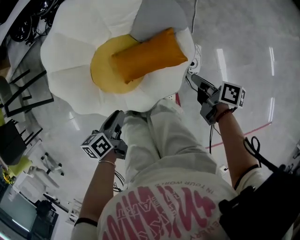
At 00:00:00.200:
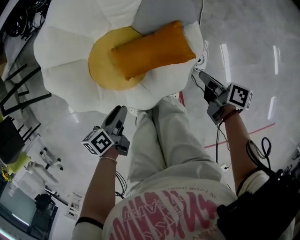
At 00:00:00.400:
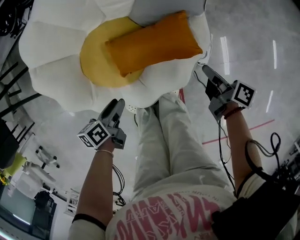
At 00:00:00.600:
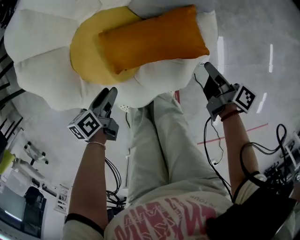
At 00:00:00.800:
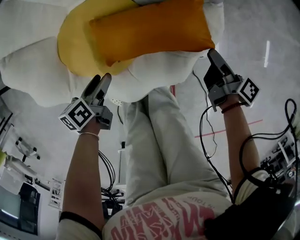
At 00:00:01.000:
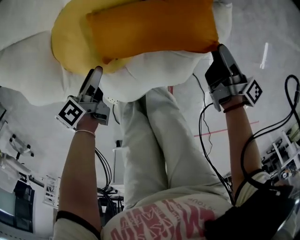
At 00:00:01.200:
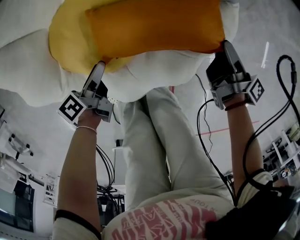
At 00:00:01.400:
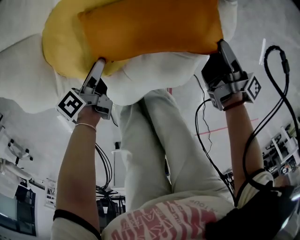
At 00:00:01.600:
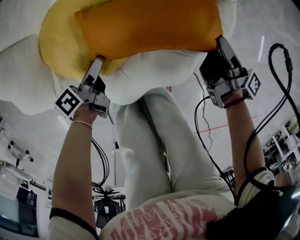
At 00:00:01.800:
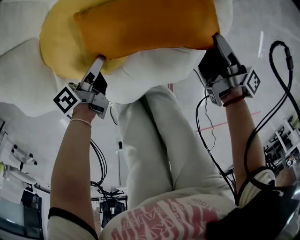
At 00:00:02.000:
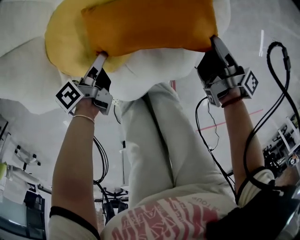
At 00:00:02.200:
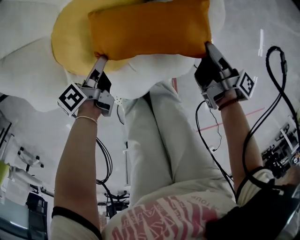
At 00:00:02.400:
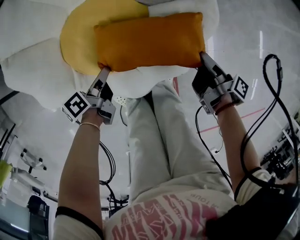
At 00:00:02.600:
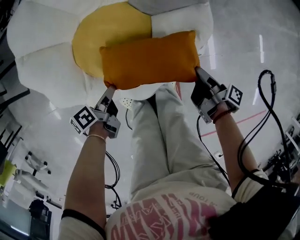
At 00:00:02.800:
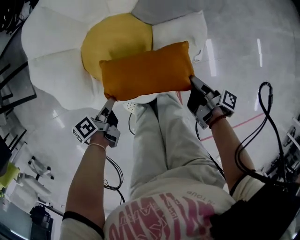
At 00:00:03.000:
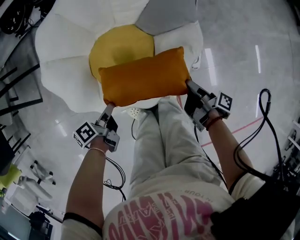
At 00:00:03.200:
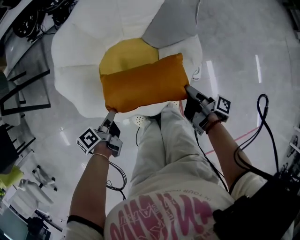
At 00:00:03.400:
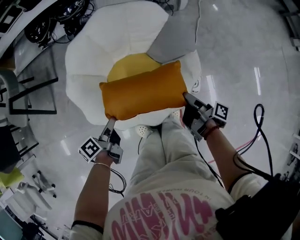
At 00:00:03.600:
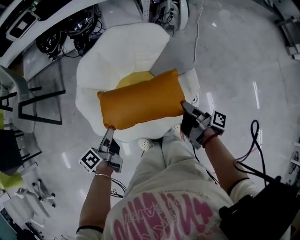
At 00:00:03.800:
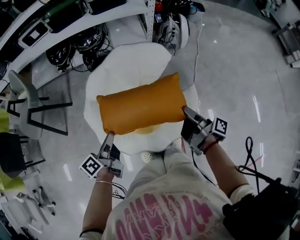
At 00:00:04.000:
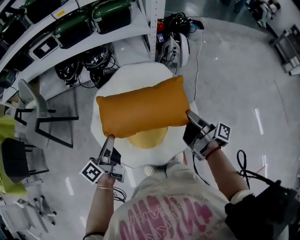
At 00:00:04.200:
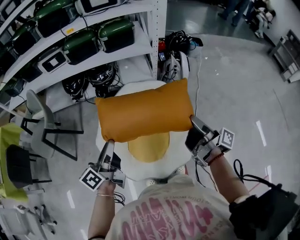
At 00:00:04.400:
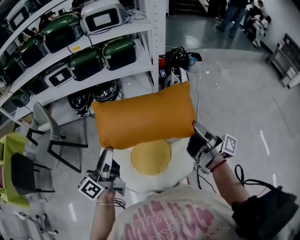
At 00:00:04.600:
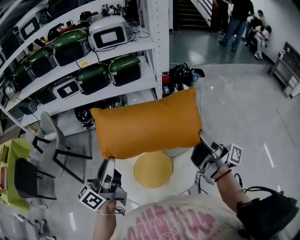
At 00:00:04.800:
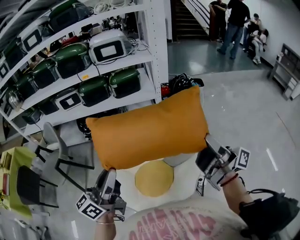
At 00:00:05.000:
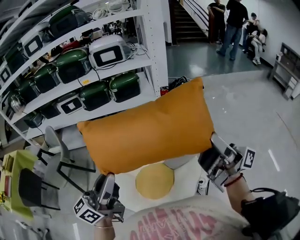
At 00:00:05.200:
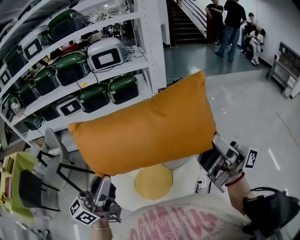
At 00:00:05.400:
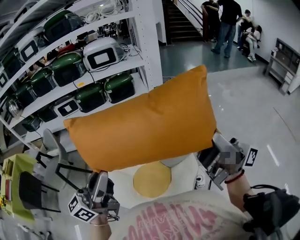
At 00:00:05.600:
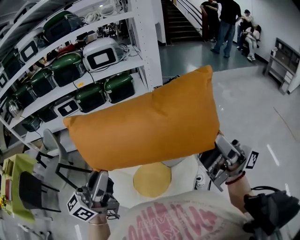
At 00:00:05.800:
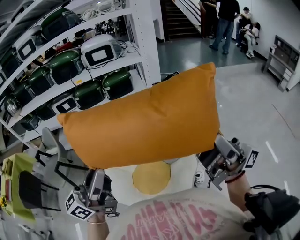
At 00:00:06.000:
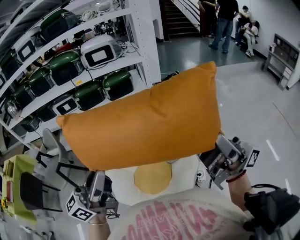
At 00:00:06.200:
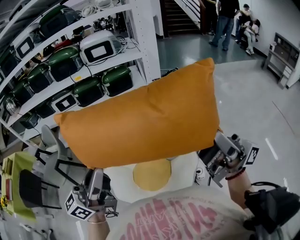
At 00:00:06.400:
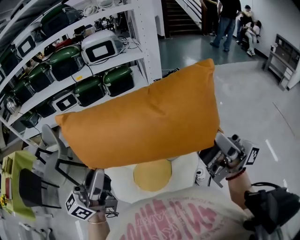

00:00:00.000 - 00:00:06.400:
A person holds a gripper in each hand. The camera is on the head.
00:00:00.000 - 00:00:01.600: The right gripper goes some 10 cm to the left and downward, turns by roughly 30 degrees, and opens its fingers. The left gripper is displaced downward and to the left by some 20 cm, rotates approximately 30 degrees, and opens its fingers.
00:00:01.600 - 00:00:03.200: The right gripper closes up. Meanwhile the left gripper goes approximately 5 cm upward, and closes its fingers.
00:00:03.200 - 00:00:04.800: Both grippers travel together upward, about 60 cm. The left gripper tilts its fingers some 50 degrees upward. The right gripper points its fingers about 60 degrees further upward.
00:00:04.800 - 00:00:06.400: The left gripper goes some 5 cm upward; the right gripper moves upward and backward, approximately 10 cm, and changes its angle by about 20 degrees.

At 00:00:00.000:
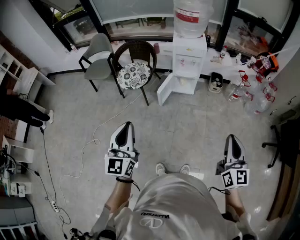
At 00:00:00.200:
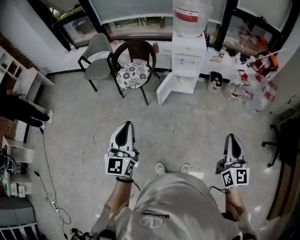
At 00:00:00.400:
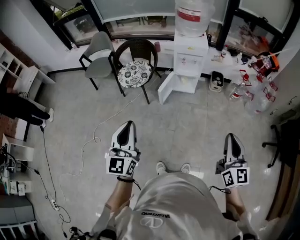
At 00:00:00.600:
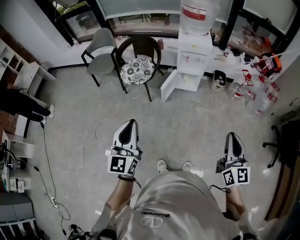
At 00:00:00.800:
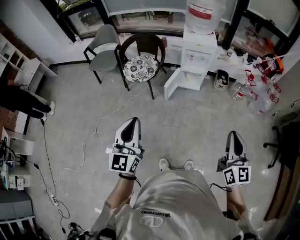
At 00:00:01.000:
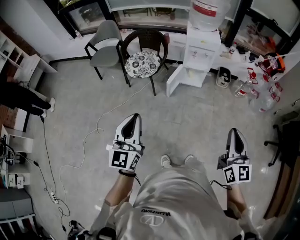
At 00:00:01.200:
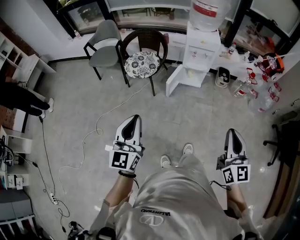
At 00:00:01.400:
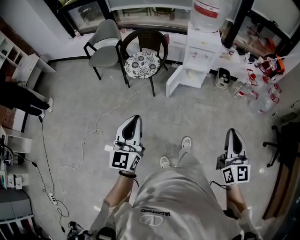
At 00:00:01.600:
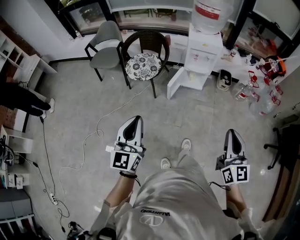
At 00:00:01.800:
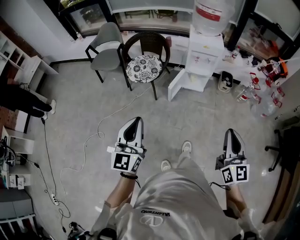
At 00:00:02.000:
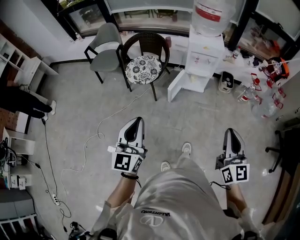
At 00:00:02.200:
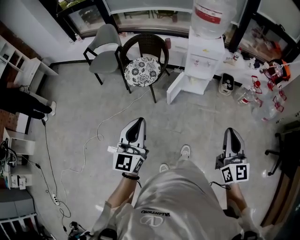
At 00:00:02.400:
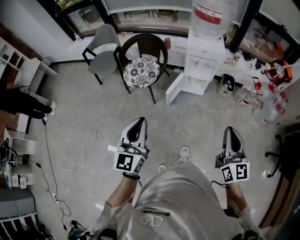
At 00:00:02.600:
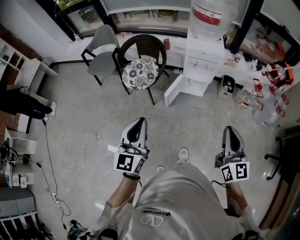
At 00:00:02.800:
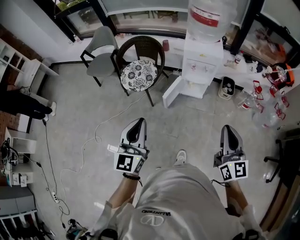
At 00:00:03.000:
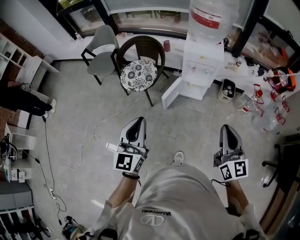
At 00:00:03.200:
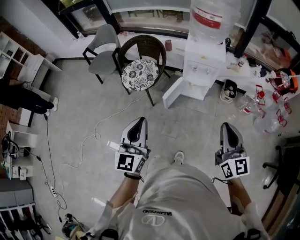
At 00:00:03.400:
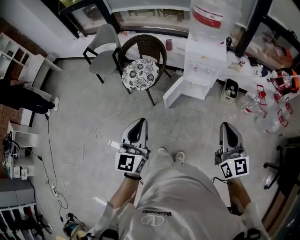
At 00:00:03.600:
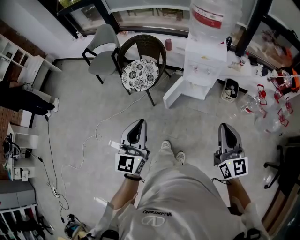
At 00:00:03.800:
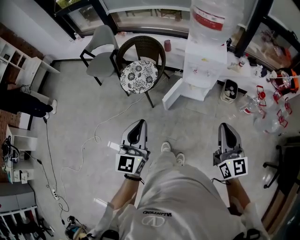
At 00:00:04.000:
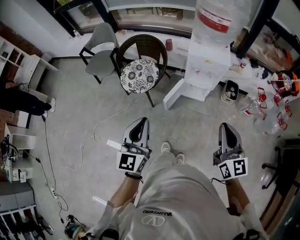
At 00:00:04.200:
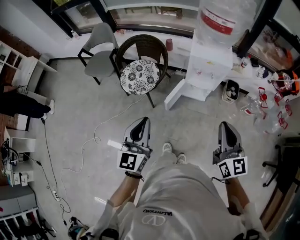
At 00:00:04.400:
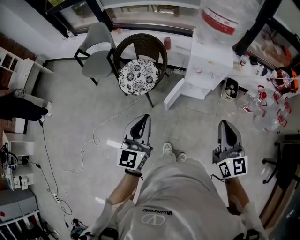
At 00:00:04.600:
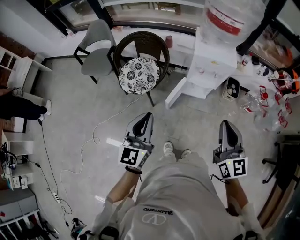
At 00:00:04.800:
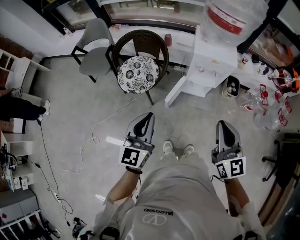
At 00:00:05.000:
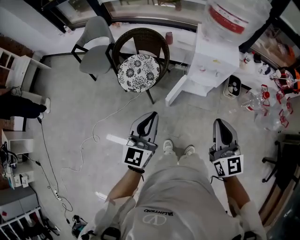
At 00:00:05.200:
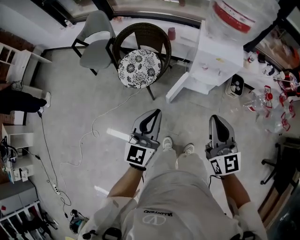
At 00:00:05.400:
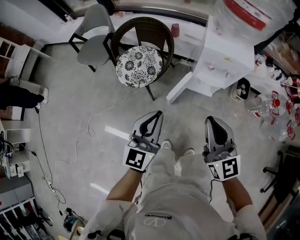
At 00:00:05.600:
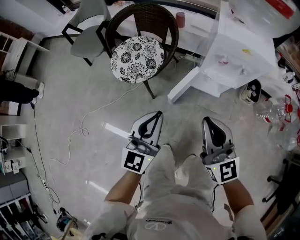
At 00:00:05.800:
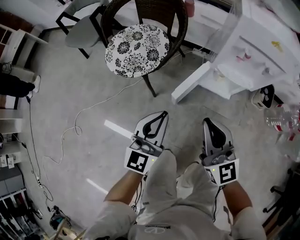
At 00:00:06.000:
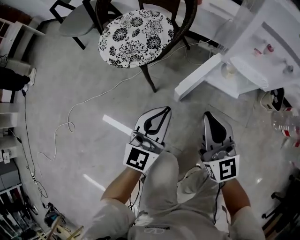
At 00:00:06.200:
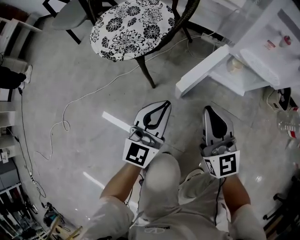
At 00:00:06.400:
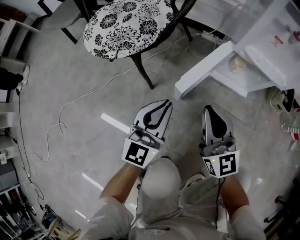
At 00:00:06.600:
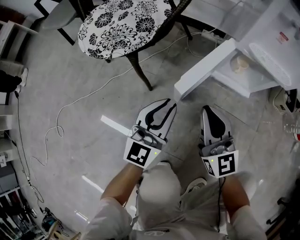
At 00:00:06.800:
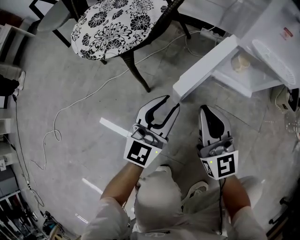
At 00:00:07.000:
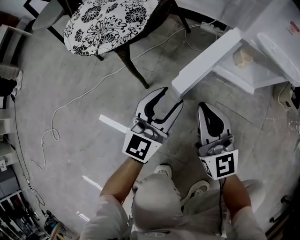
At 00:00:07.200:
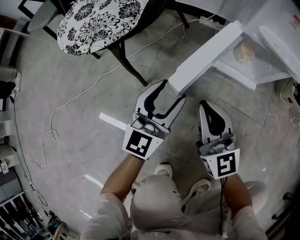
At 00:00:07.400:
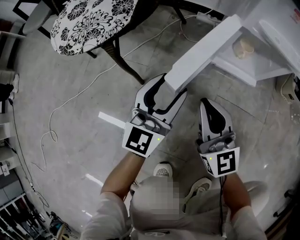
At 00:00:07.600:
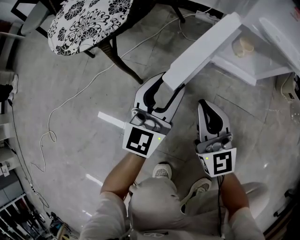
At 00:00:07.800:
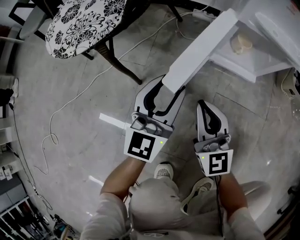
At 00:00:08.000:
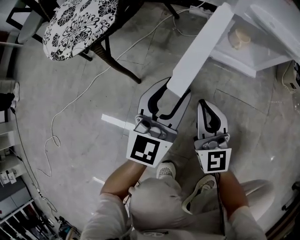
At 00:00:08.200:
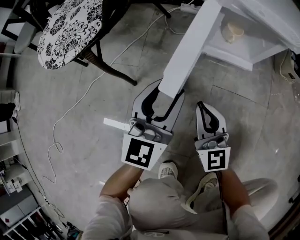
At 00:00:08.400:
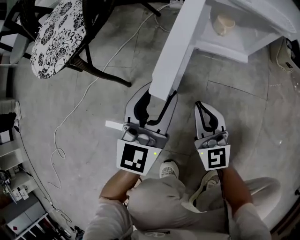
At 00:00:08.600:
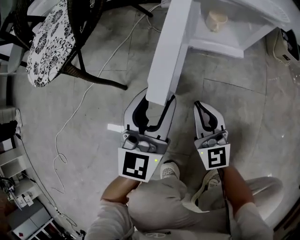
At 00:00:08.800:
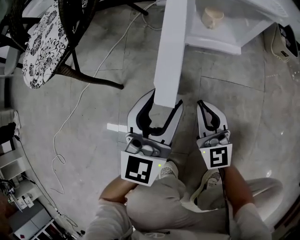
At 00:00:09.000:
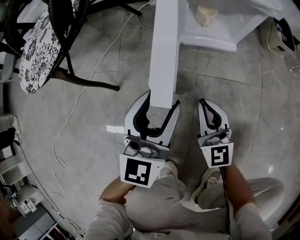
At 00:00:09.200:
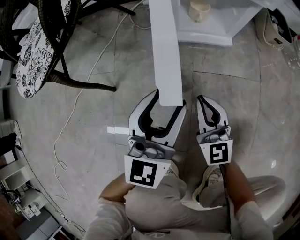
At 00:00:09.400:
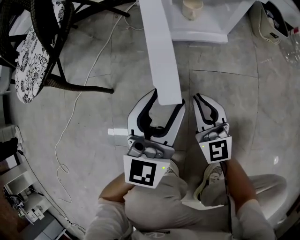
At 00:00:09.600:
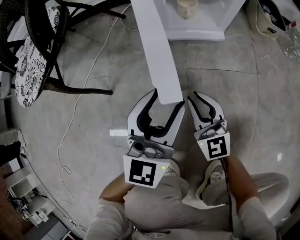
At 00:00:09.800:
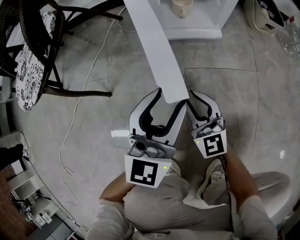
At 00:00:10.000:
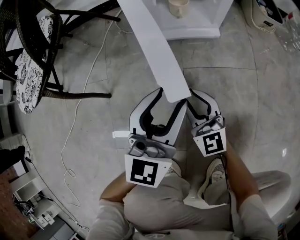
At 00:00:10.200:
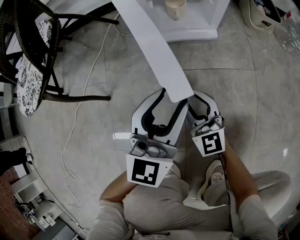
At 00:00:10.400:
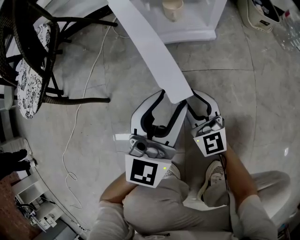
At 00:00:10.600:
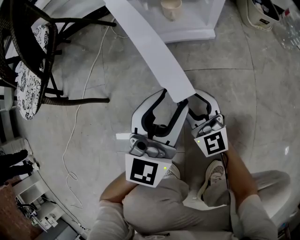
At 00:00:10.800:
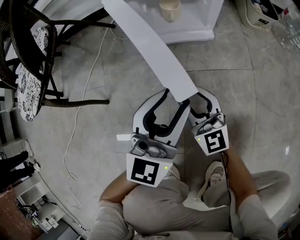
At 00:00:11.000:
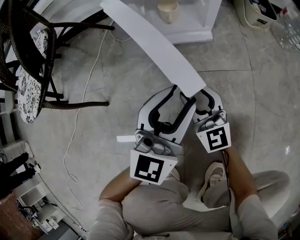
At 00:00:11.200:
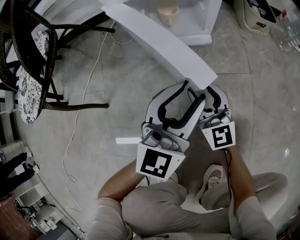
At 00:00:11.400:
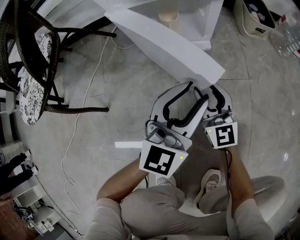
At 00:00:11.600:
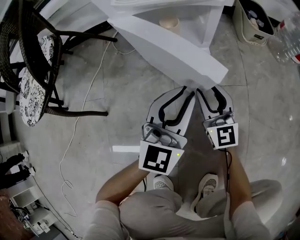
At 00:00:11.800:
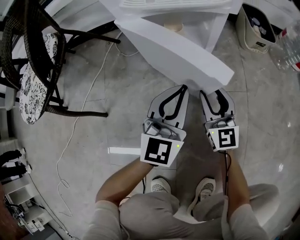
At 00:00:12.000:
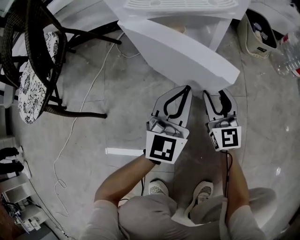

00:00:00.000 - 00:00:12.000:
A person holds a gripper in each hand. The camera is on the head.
00:00:00.000 - 00:00:01.600: The right gripper travels to the left by roughly 10 cm. Meanwhile the left gripper is displaced to the left by approximately 5 cm.
00:00:01.600 - 00:00:03.000: Both grippers travel together forward and to the right, roughly 20 cm.
00:00:03.000 - 00:00:04.400: The right gripper heads forward and to the left, covering approximately 15 cm, while the left gripper heads forward, covering about 15 cm.
00:00:04.400 - 00:00:06.000: Both grippers move downward, roughly 50 cm. The right gripper rotates about 20 degrees.
00:00:06.000 - 00:00:07.600: The left gripper shifts about 25 cm downward and forward, and opens up. Meanwhile the right gripper is displaced downward by roughly 25 cm.
00:00:07.600 - 00:00:09.000: The left gripper goes roughly 10 cm to the right and backward. The right gripper heads to the right and downward, covering approximately 15 cm.
00:00:09.000 - 00:00:10.400: The left gripper is displaced to the right by about 10 cm. Meanwhile the right gripper changes place by some 5 cm, and opens its fingers.
00:00:10.400 - 00:00:12.000: The right gripper is displaced forward and to the right by approximately 15 cm; the left gripper is displaced forward by roughly 10 cm, and closes up.

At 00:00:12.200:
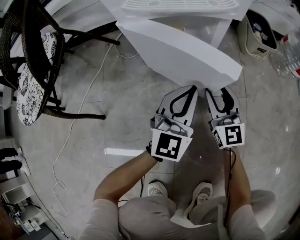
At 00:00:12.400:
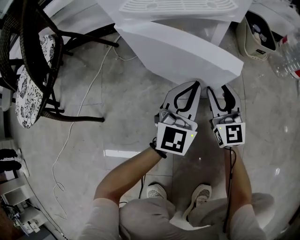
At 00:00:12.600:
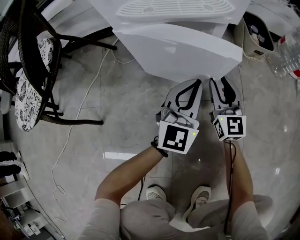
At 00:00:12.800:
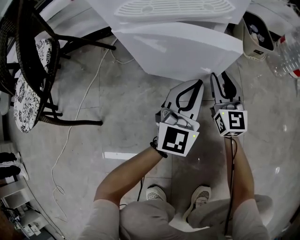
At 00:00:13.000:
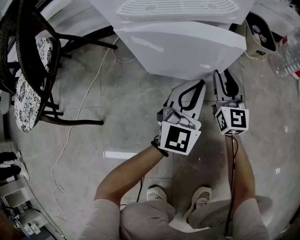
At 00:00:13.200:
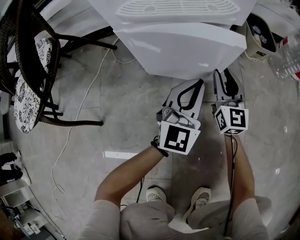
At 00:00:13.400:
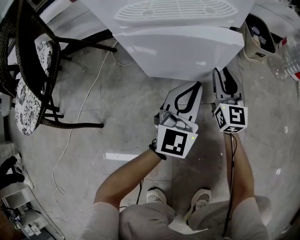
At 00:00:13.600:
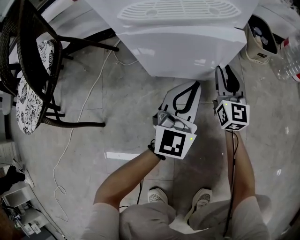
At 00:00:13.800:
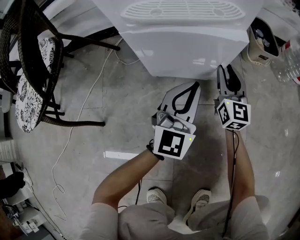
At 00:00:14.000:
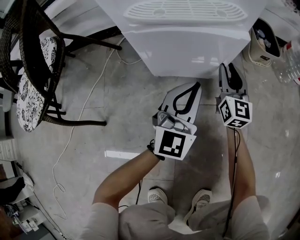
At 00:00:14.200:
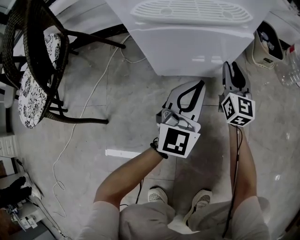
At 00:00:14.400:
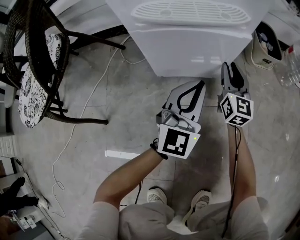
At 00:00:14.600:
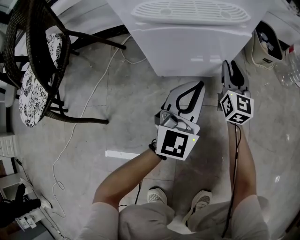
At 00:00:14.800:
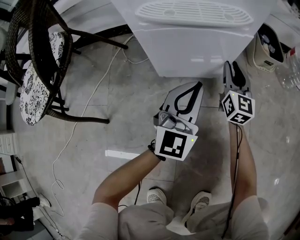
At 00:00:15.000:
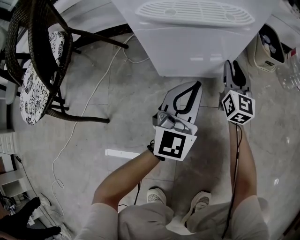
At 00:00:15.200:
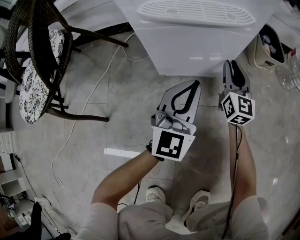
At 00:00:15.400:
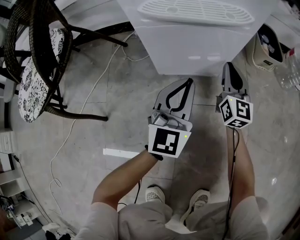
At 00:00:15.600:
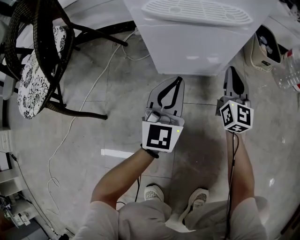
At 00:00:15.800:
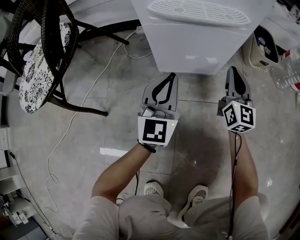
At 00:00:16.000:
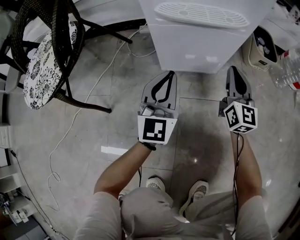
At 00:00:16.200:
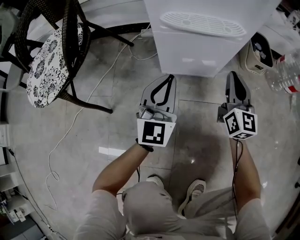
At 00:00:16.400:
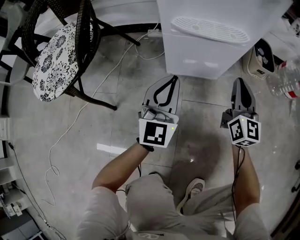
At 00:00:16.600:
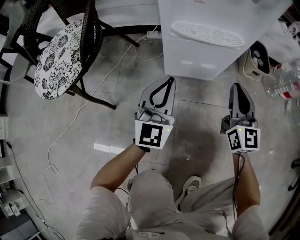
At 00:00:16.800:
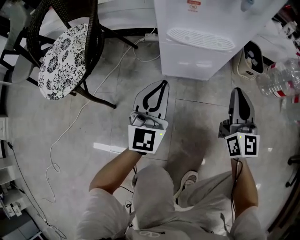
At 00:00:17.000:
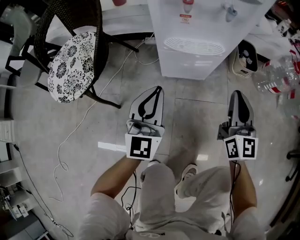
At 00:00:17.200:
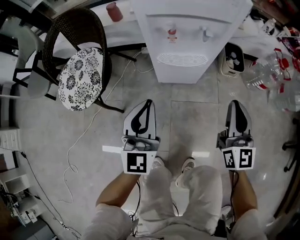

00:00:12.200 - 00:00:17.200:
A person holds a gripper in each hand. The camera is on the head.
00:00:12.200 - 00:00:13.800: The right gripper moves forward, about 10 cm.
00:00:13.800 - 00:00:15.600: The right gripper closes up. The left gripper moves to the left, about 5 cm.
00:00:15.600 - 00:00:17.200: The right gripper travels upward and backward by some 40 cm; the left gripper heads upward, covering roughly 35 cm.
